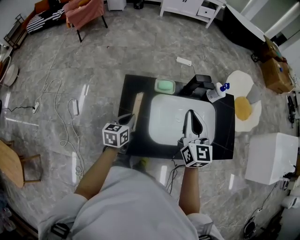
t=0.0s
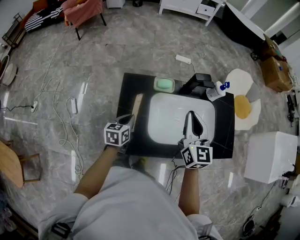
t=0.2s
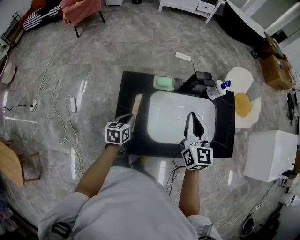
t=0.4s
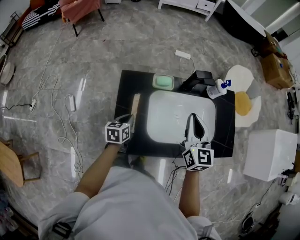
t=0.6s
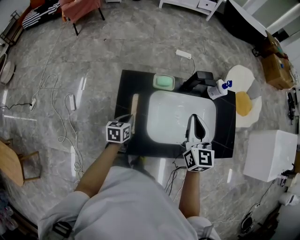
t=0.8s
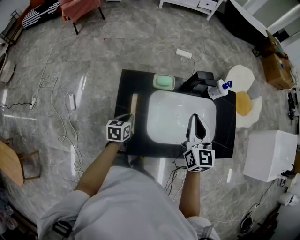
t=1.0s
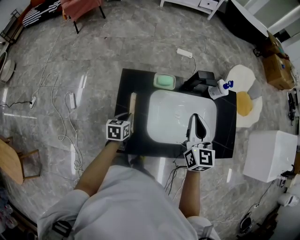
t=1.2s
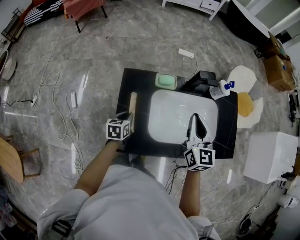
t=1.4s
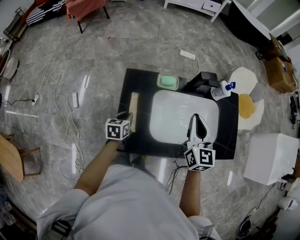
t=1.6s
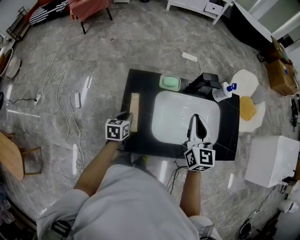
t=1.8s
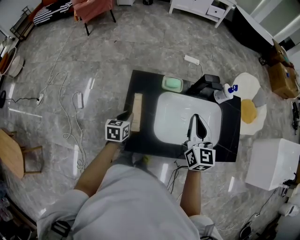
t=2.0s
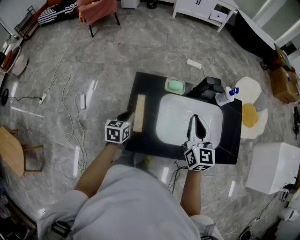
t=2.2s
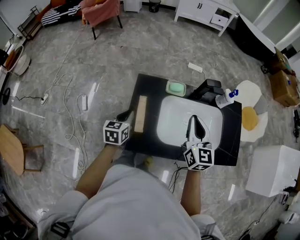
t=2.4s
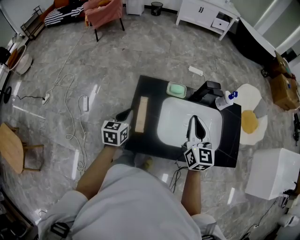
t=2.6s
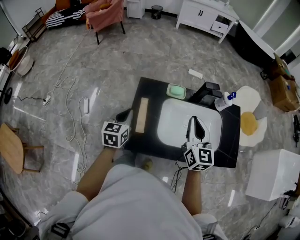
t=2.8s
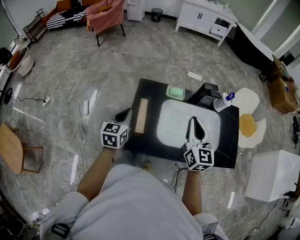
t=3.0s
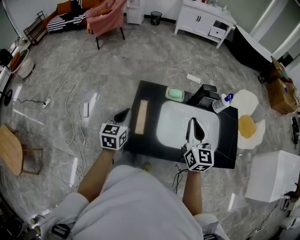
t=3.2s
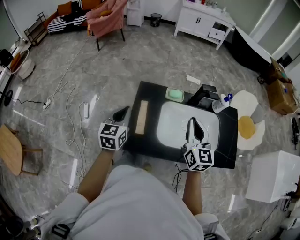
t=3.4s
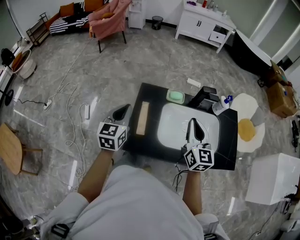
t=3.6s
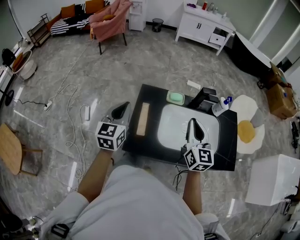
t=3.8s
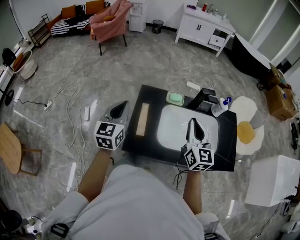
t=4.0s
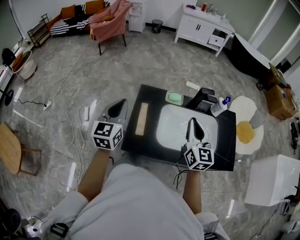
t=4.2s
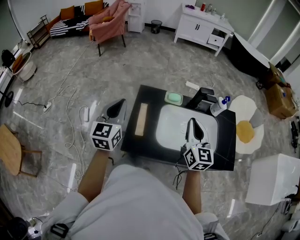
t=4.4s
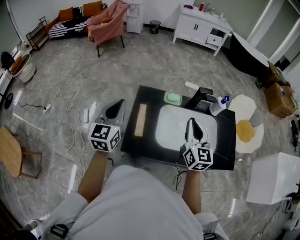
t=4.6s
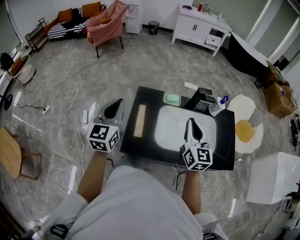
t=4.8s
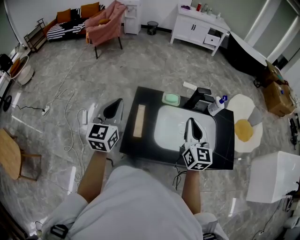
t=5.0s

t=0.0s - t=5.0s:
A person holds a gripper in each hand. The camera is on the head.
t=0.0s - t=1.6s: The left gripper is displaced downward by approximately 10 cm.
t=1.6s - t=3.4s: The left gripper is displaced upward by roughly 20 cm, and changes its angle by approximately 30 degrees, while the right gripper shifts about 10 cm backward and upward.
t=3.4s - t=5.0s: The left gripper heads upward, covering approximately 10 cm.

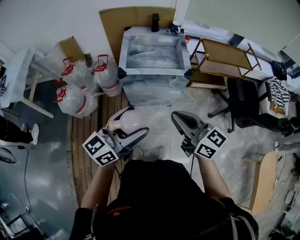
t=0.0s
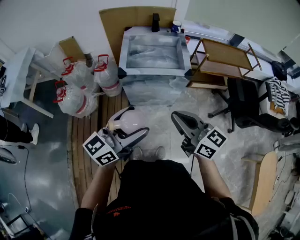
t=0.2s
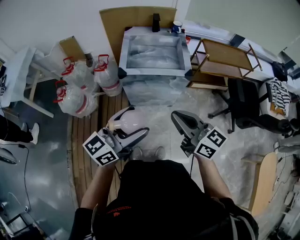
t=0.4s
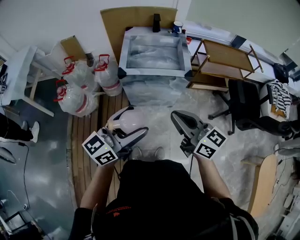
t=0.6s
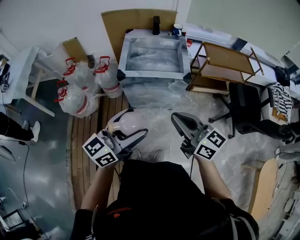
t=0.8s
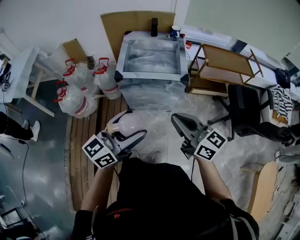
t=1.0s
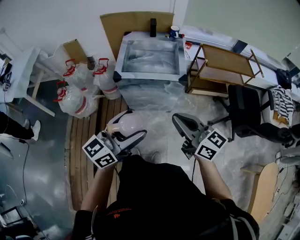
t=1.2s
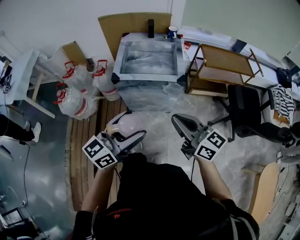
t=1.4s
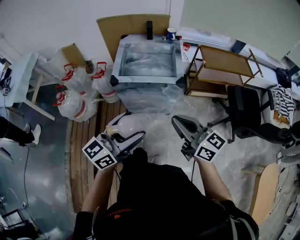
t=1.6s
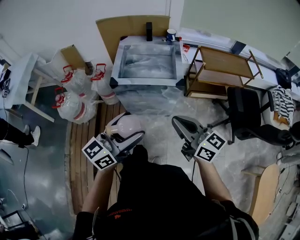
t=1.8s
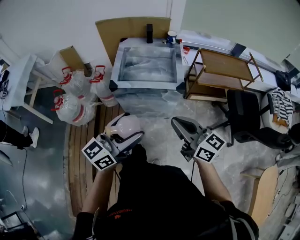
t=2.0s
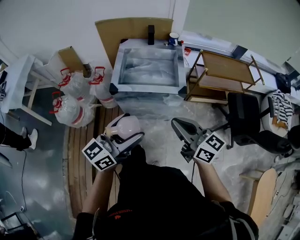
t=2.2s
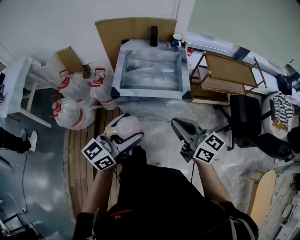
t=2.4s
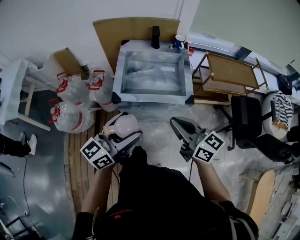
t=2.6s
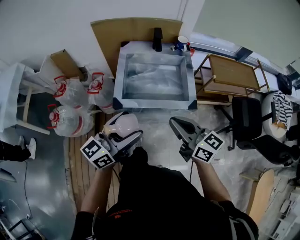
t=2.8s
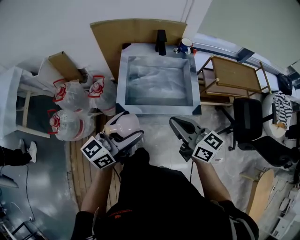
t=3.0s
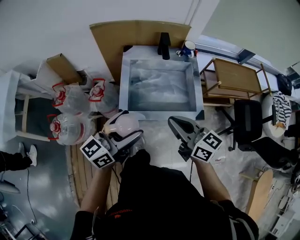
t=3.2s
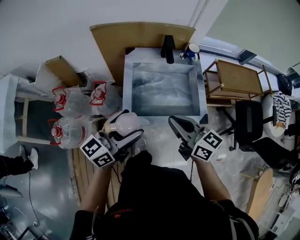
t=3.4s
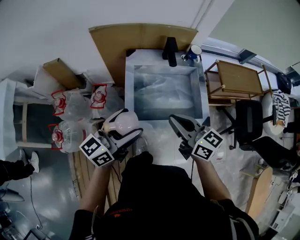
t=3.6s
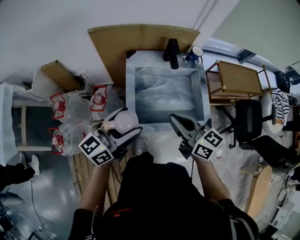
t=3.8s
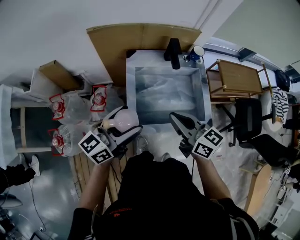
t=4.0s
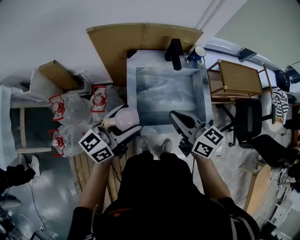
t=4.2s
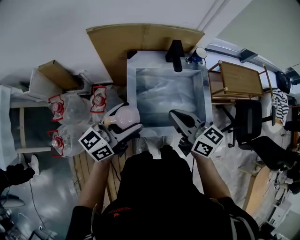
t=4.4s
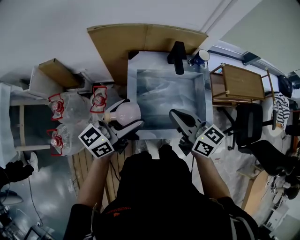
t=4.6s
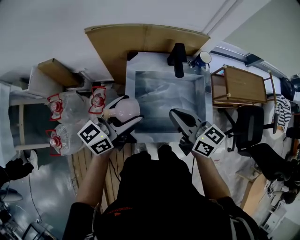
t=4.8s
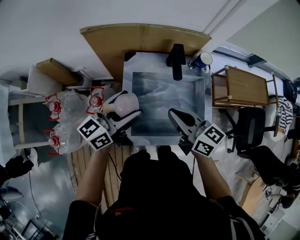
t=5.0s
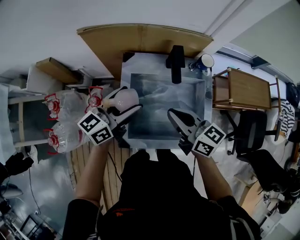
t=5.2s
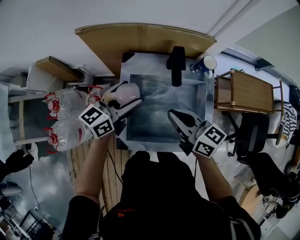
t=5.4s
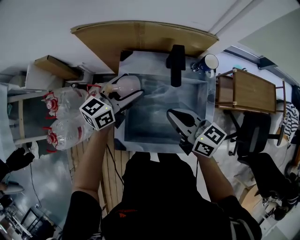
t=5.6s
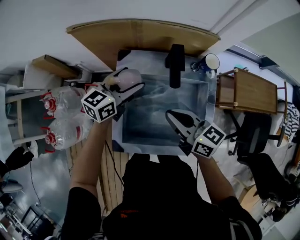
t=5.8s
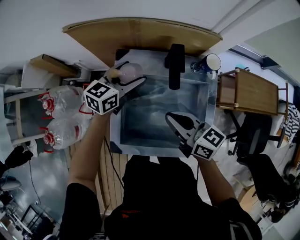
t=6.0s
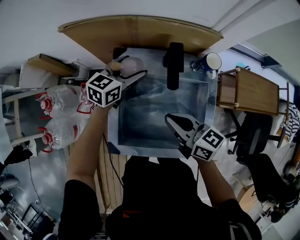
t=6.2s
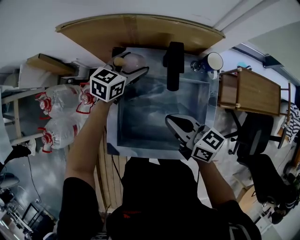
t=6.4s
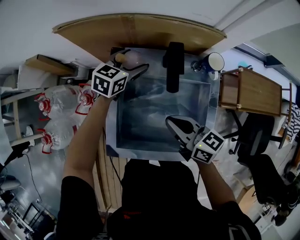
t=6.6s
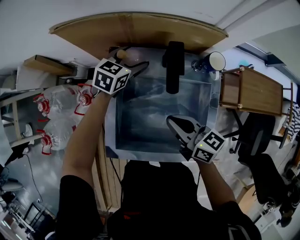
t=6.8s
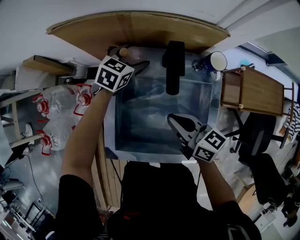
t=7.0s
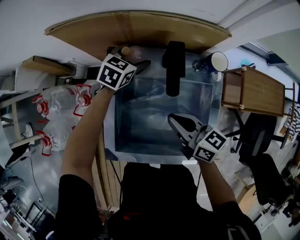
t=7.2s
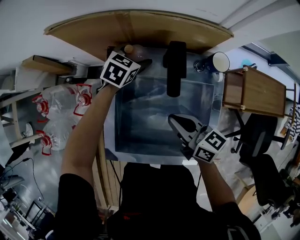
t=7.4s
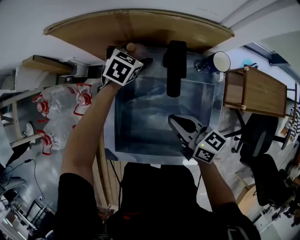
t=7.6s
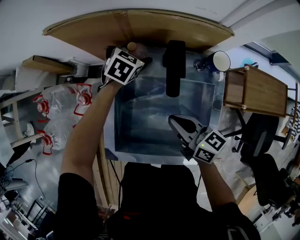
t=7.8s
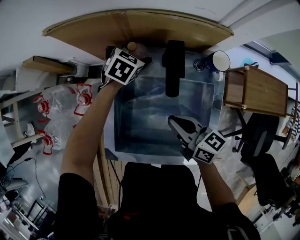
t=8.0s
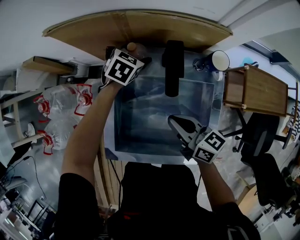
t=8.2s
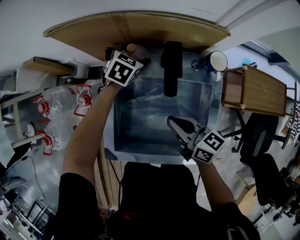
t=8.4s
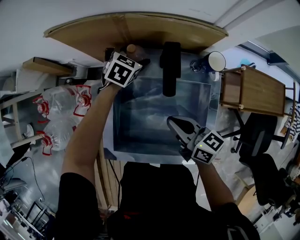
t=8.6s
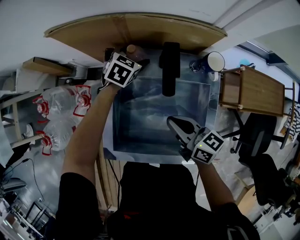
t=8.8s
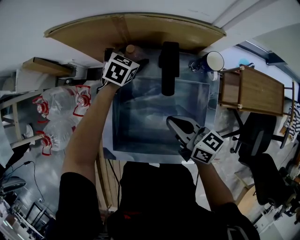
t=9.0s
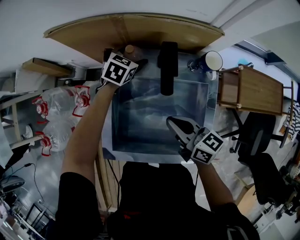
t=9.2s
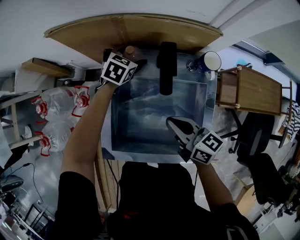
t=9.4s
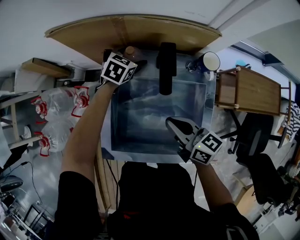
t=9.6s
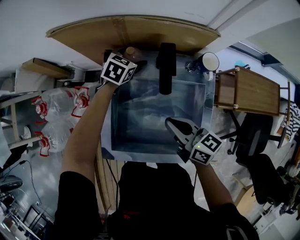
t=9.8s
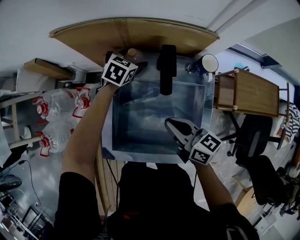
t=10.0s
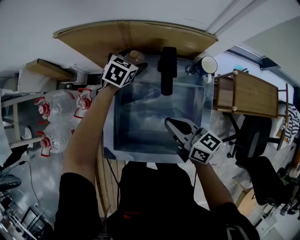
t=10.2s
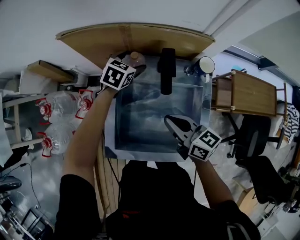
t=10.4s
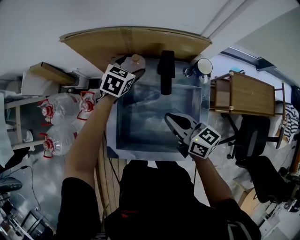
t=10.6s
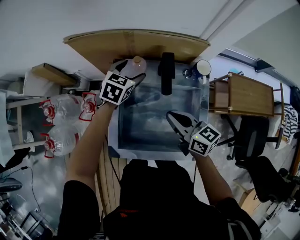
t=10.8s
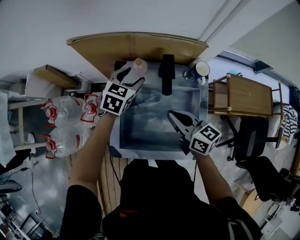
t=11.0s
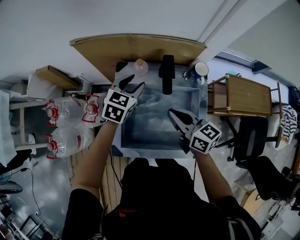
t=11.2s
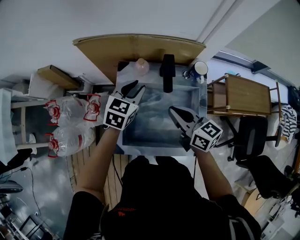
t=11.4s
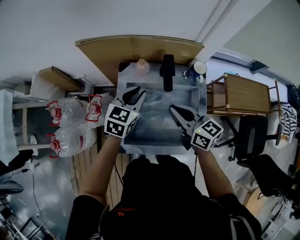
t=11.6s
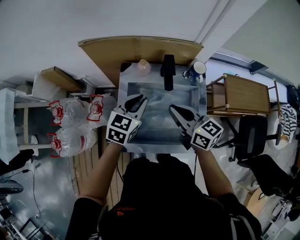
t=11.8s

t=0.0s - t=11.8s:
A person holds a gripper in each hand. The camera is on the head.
t=0.0s - t=1.4s: Both grippers travel together to the right, roughly 10 cm.
t=1.4s - t=3.0s: The grippers both shift forward by about 25 cm.
t=3.0s - t=4.4s: The two grippers go approximately 20 cm forward and to the left.
t=4.4s - t=6.0s: The left gripper shifts approximately 30 cm forward and downward, and swivels about 30 degrees. The right gripper moves forward, downward and to the right, roughly 15 cm.
t=6.0s - t=7.4s: The left gripper heads downward and forward, covering some 15 cm, and rotates some 30 degrees. The right gripper heads downward, covering about 5 cm.
t=7.4s - t=8.8s: The grippers make only small movements.
t=8.8s - t=10.4s: The left gripper goes about 5 cm upward.
t=10.4s - t=11.8s: The left gripper is displaced backward and upward by about 25 cm, and closes its fingers, while the right gripper moves upward, roughly 10 cm.

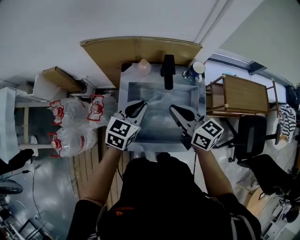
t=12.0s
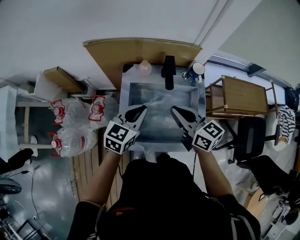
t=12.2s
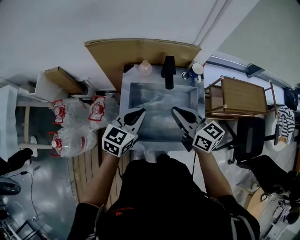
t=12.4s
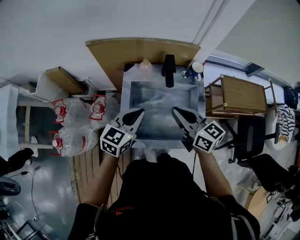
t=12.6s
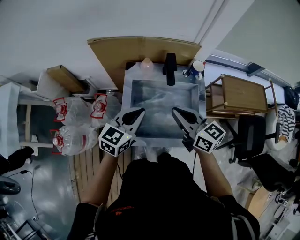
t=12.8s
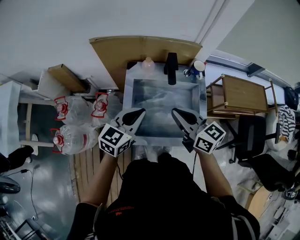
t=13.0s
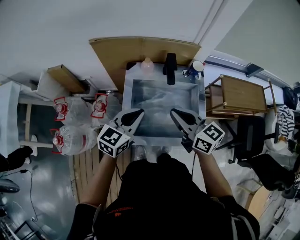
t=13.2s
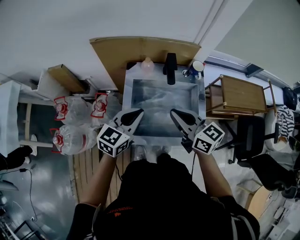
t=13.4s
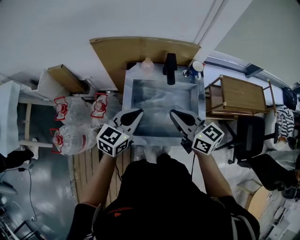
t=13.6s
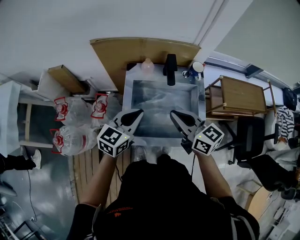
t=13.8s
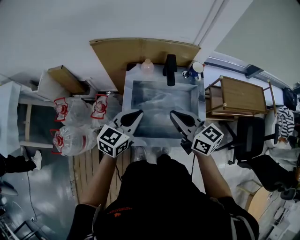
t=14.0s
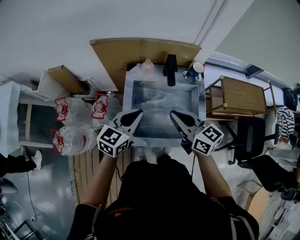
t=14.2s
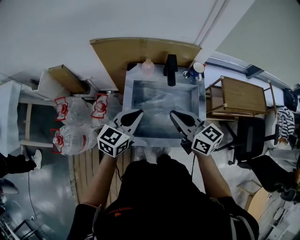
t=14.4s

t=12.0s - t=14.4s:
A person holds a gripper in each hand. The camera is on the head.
t=12.0s - t=13.2s: Both grippers travel together backward, roughly 5 cm.
t=13.2s - t=14.4s: The two grippers keep their place.

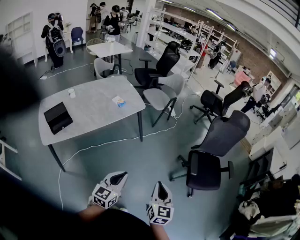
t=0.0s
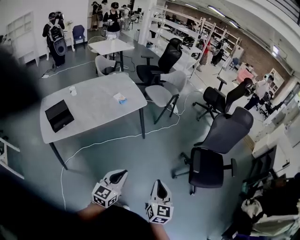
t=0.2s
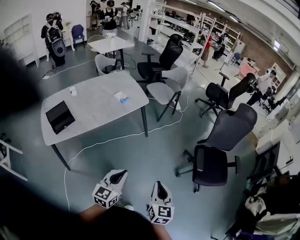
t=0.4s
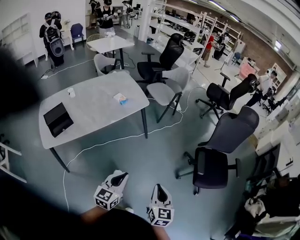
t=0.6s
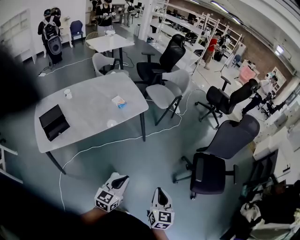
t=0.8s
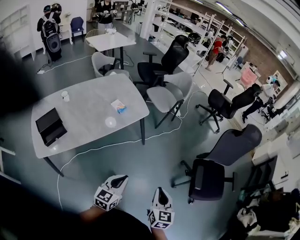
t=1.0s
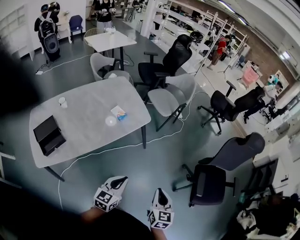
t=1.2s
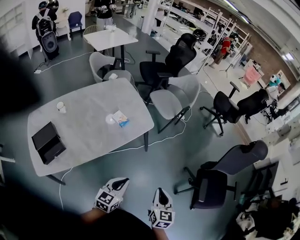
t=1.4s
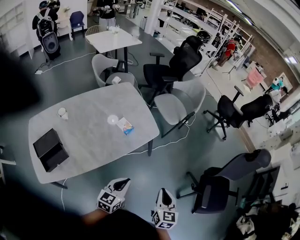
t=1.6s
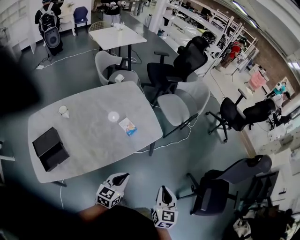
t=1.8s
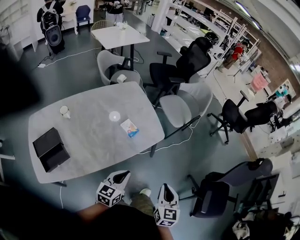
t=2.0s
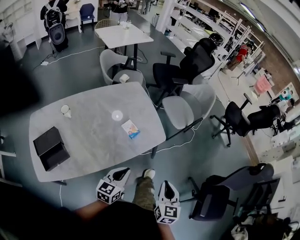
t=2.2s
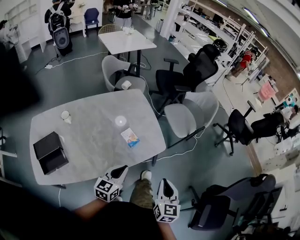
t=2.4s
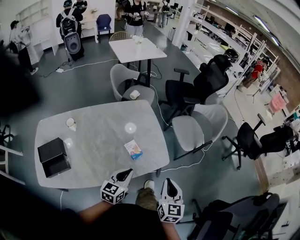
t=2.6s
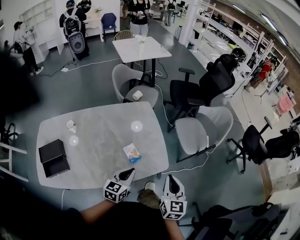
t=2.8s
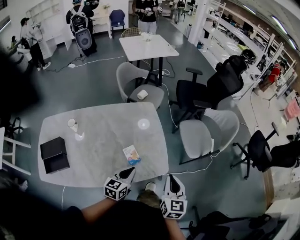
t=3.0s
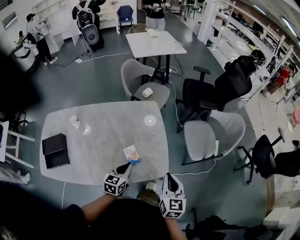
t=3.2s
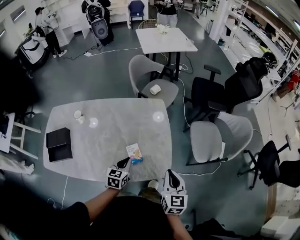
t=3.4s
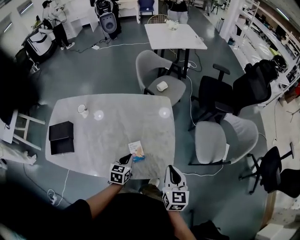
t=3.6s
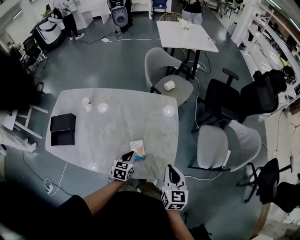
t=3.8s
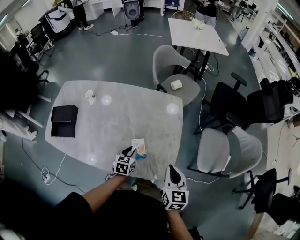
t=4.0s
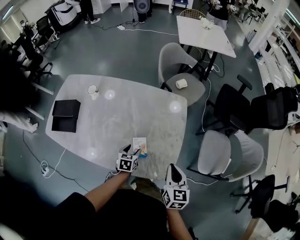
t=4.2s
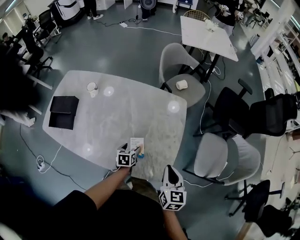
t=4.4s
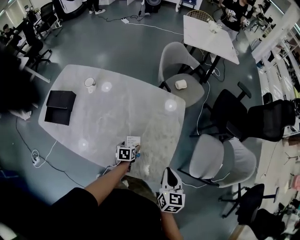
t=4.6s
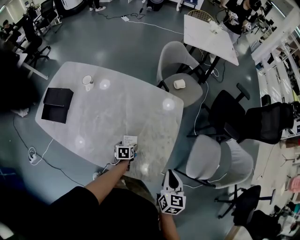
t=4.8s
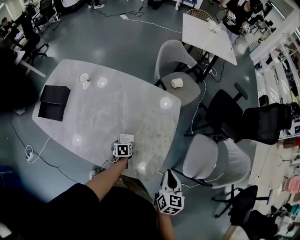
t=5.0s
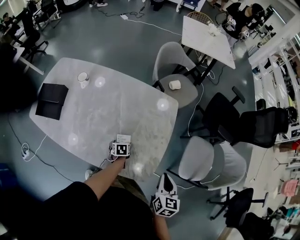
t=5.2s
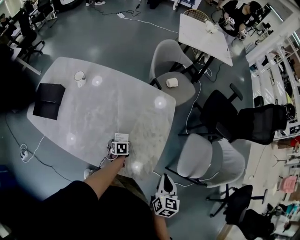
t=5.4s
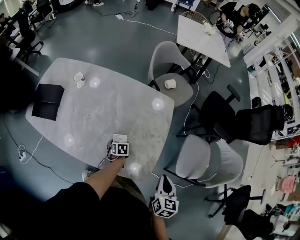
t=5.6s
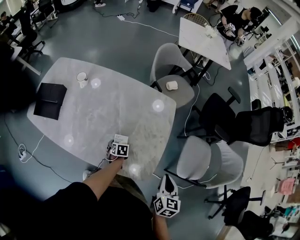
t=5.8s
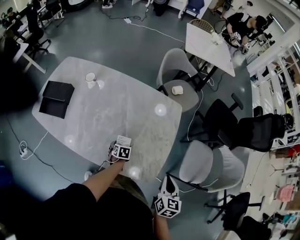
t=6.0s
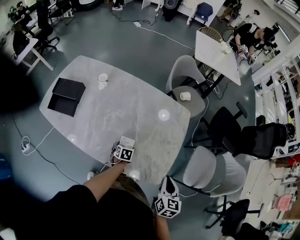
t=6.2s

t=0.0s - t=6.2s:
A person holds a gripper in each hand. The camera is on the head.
t=0.0s - t=1.6s: Both grippers are carried forward and to the left, roughly 40 cm.
t=1.6s - t=3.2s: The left gripper shifts by some 35 cm, and changes its angle by roughly 30 degrees. The right gripper shifts by some 40 cm, and changes its angle by some 30 degrees.
t=3.2s - t=4.6s: The right gripper moves some 15 cm, and turns by roughly 20 degrees; the left gripper heads downward, covering some 20 cm, swivels some 50 degrees, and opens up.
t=4.6s - t=6.2s: The left gripper goes roughly 5 cm to the left. The right gripper moves some 5 cm to the right and comes back.
